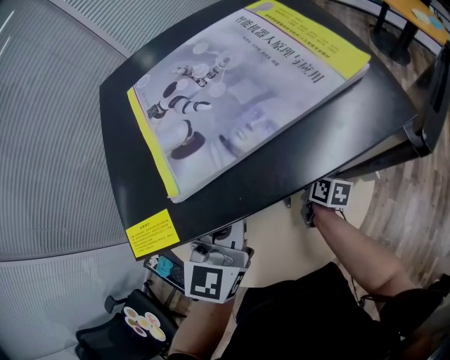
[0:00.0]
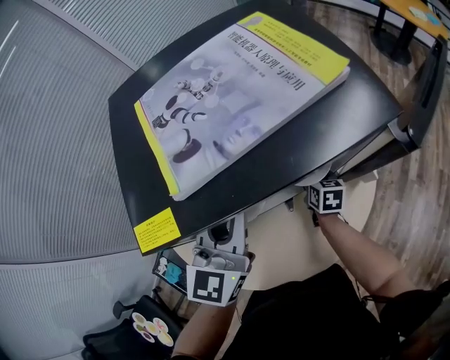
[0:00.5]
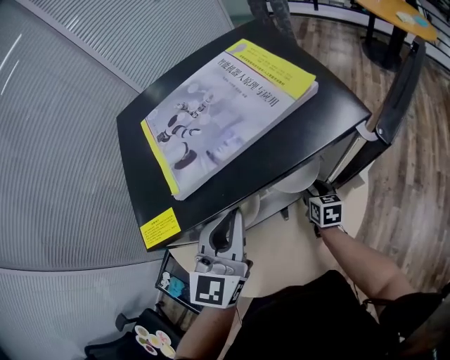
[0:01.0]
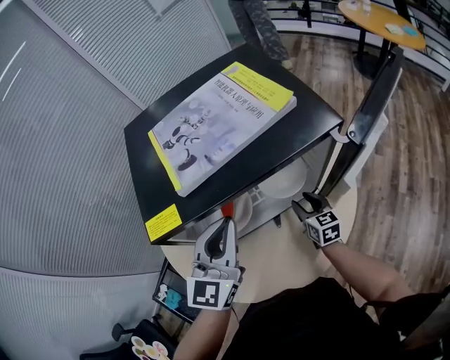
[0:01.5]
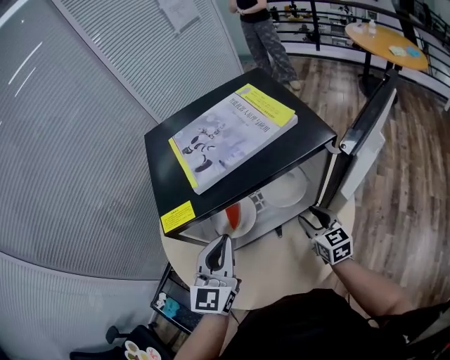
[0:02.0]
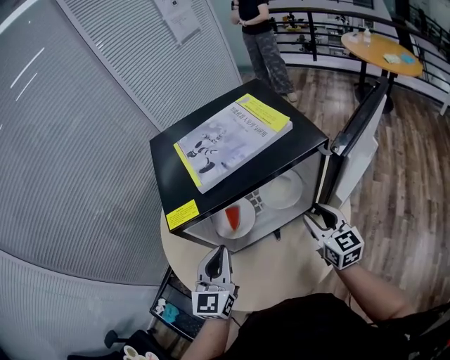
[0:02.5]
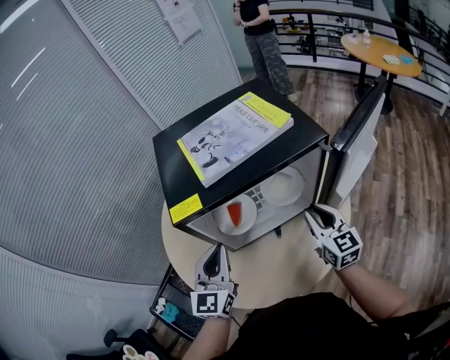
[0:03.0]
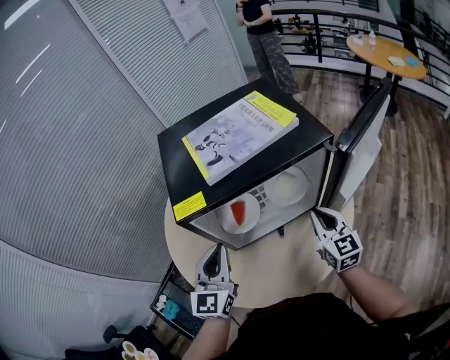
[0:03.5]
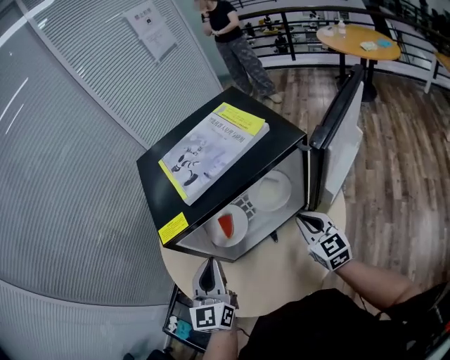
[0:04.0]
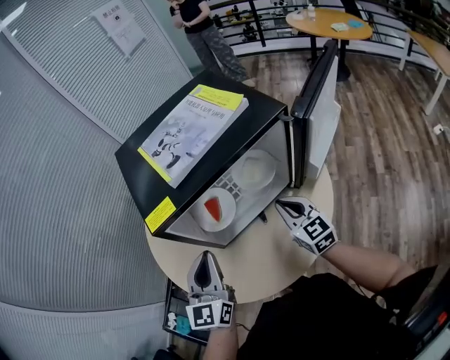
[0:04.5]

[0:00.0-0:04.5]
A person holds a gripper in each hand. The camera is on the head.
0:00.0 to 0:02.0: The right gripper travels upward and backward by approximately 15 cm, rotates around the line of its fingers by approximately 40 degrees, counterclockwise from behind, and opens up; the left gripper is displaced backward by approximately 10 cm.
0:02.0 to 0:04.5: The left gripper is displaced backward by roughly 5 cm, while the right gripper is displaced upward by about 5 cm, and closes its fingers.

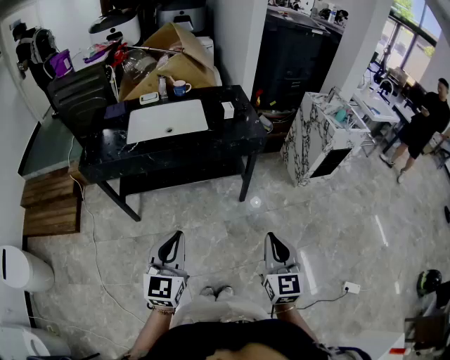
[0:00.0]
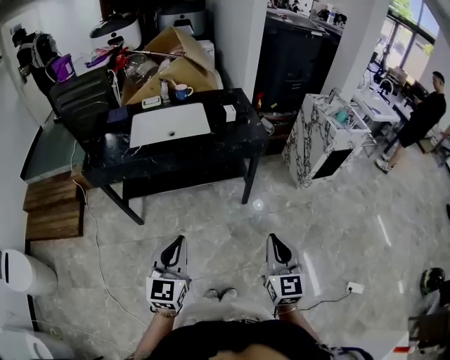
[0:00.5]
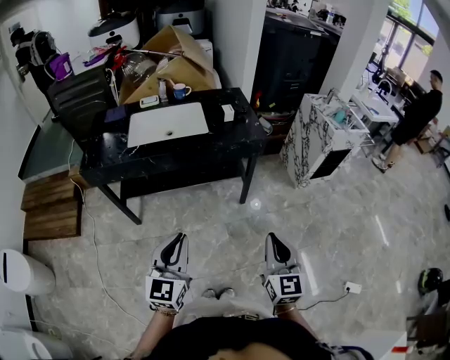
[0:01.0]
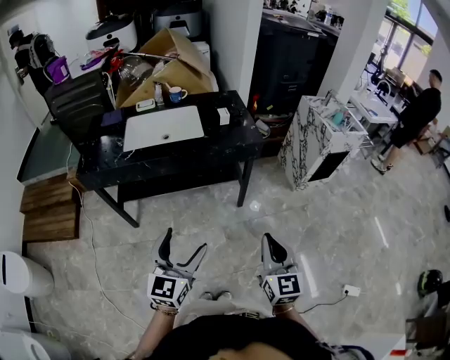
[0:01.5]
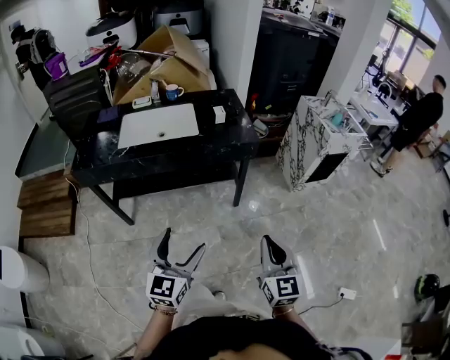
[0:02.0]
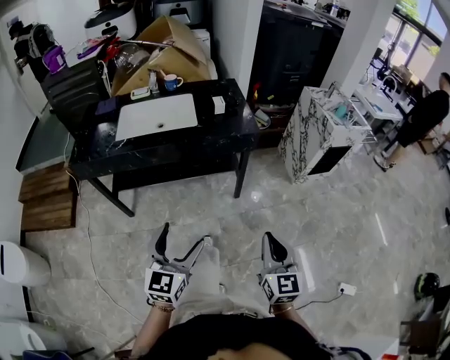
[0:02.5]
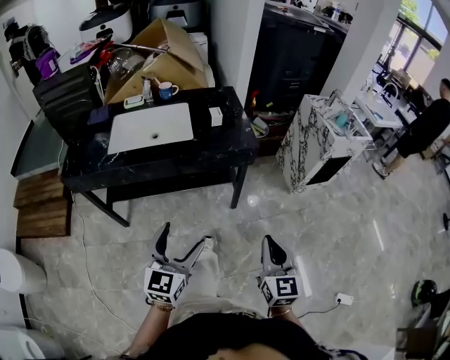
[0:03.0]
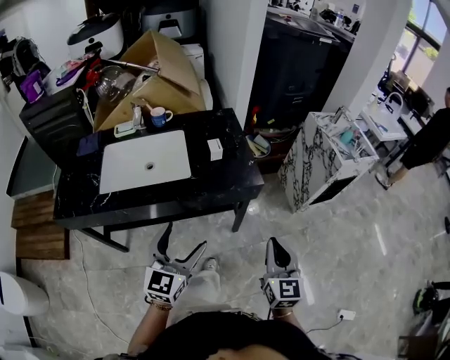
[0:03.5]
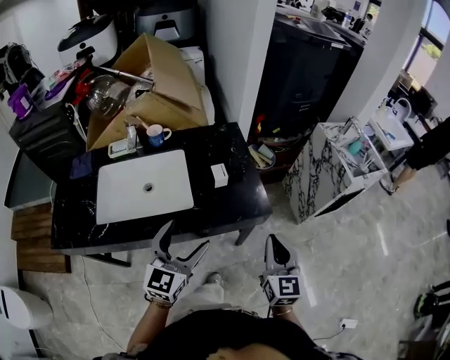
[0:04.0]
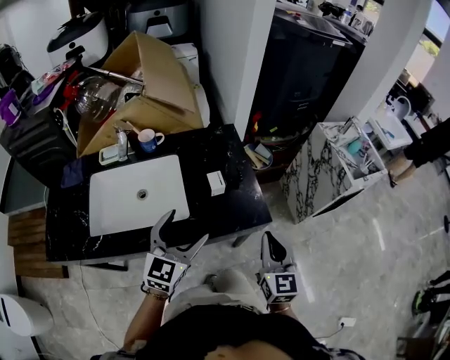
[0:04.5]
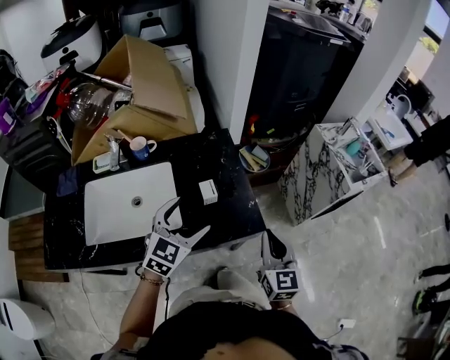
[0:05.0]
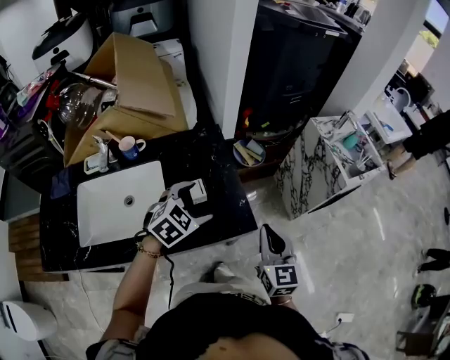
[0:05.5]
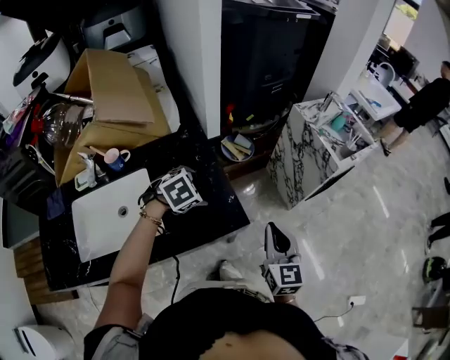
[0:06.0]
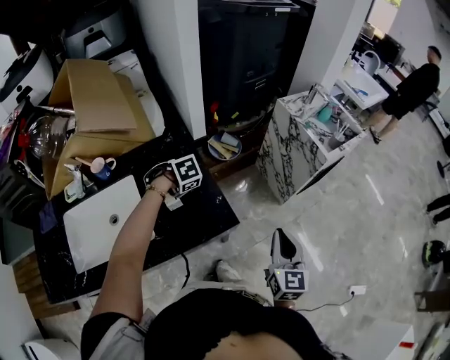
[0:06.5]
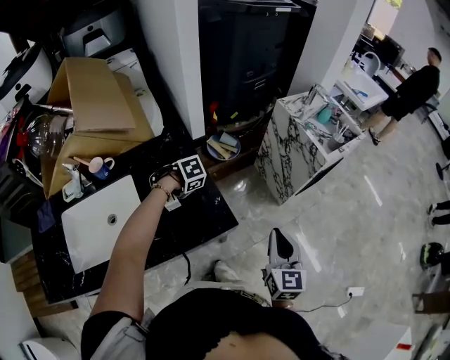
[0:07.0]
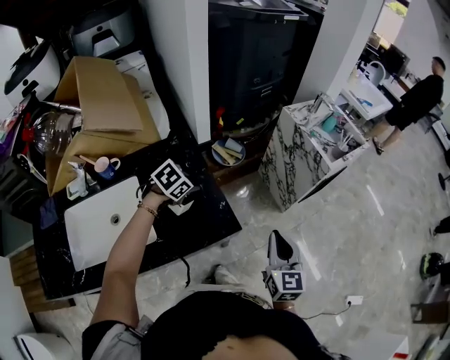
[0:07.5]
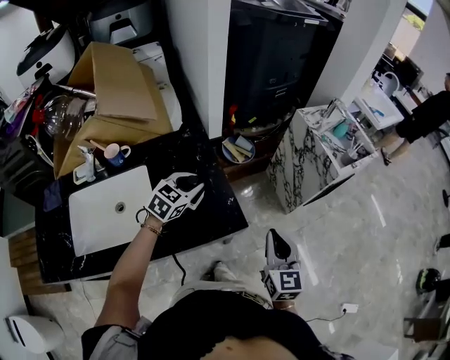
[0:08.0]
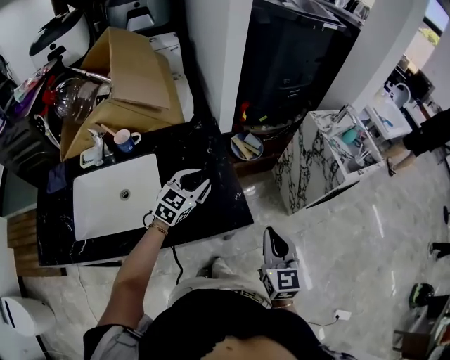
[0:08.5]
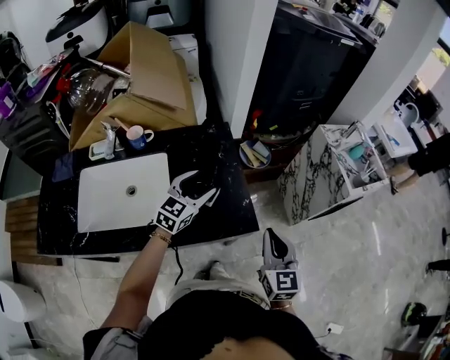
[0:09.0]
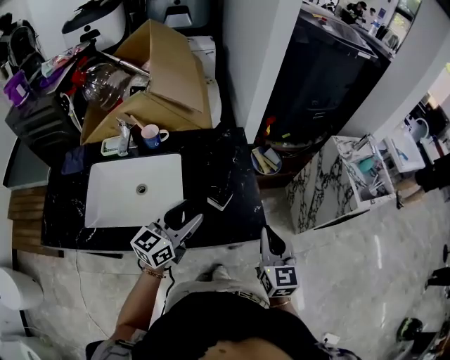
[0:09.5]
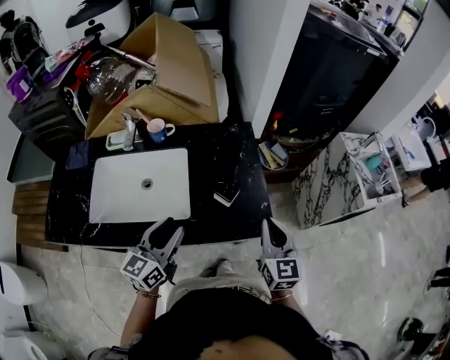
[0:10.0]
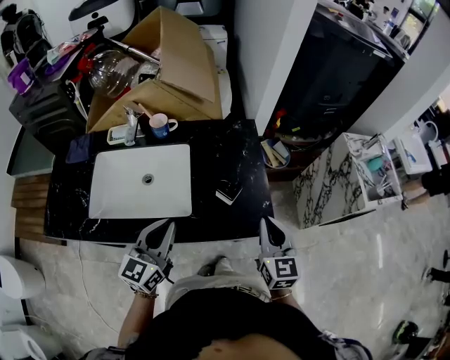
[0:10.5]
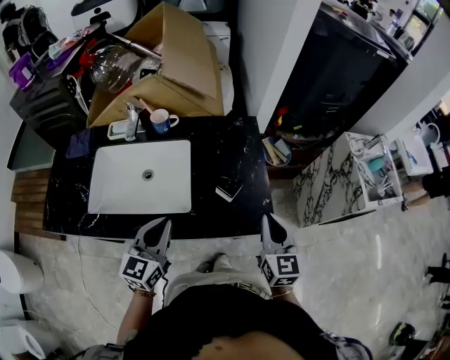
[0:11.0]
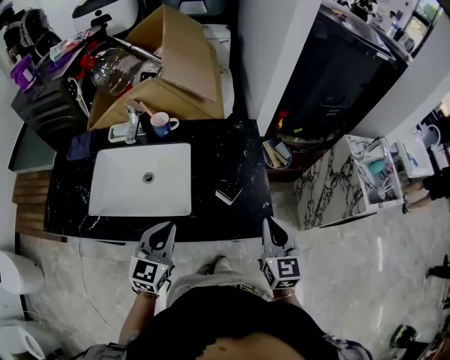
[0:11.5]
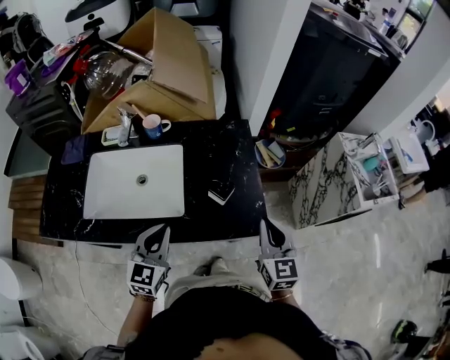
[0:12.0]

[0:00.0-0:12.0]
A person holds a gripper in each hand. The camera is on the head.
0:00.0 to 0:02.0: The left gripper travels to the right by about 5 cm, and opens its fingers.
0:02.0 to 0:04.0: The grippers both shift forward by about 40 cm.
0:04.0 to 0:06.0: The left gripper travels forward by about 25 cm, and points its fingers approximately 60 degrees further downward. Meanwhile the right gripper heads forward and to the right, covering roughly 15 cm.
0:06.0 to 0:08.0: The left gripper travels downward and back again, some 10 cm each way, tips its fingers upward by approximately 30 degrees, and closes.
0:08.0 to 0:10.0: The right gripper shifts approximately 10 cm to the left, while the left gripper goes roughly 25 cm backward and to the left, and swivels approximately 50 degrees.
0:10.0 to 0:12.0: The left gripper changes its angle by some 20 degrees, and closes its fingers.

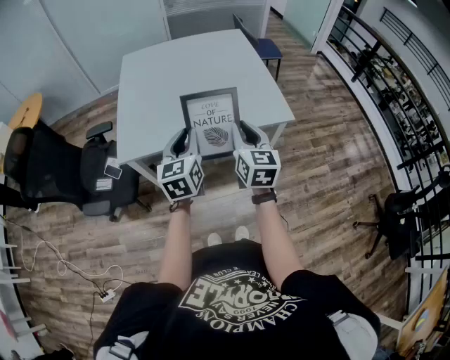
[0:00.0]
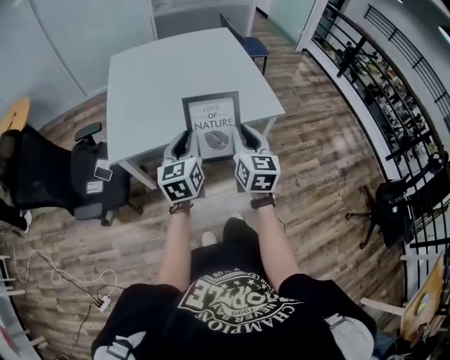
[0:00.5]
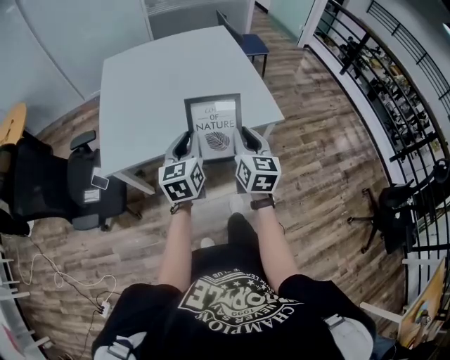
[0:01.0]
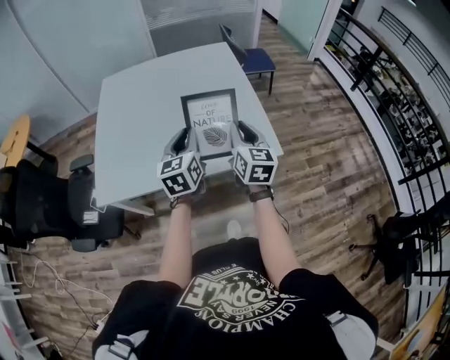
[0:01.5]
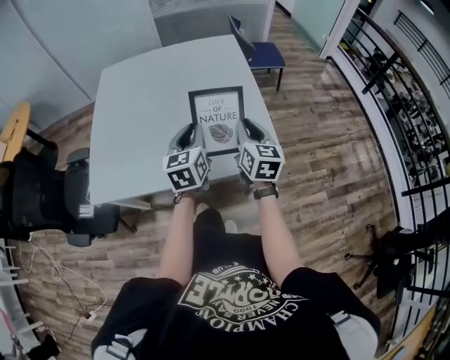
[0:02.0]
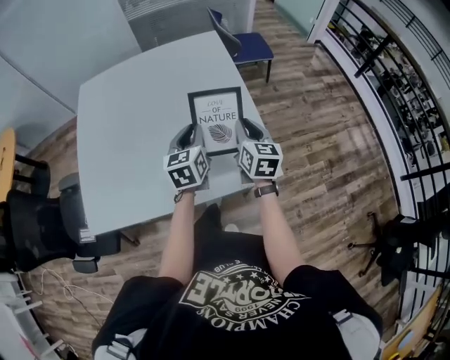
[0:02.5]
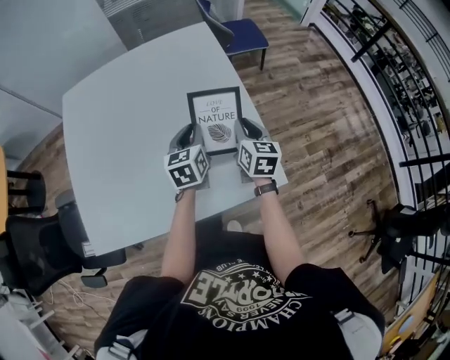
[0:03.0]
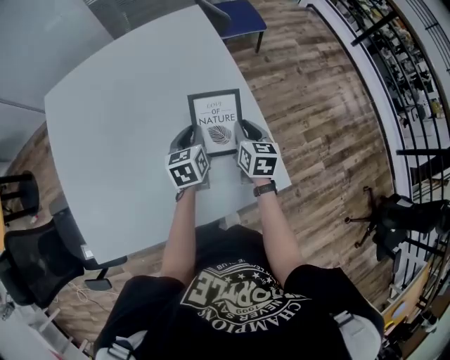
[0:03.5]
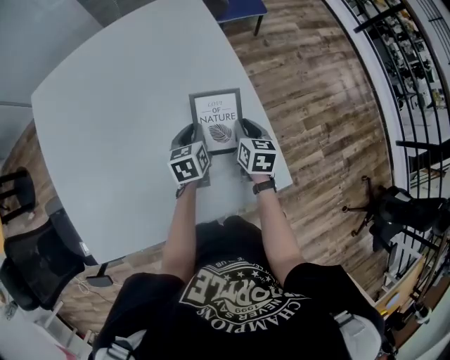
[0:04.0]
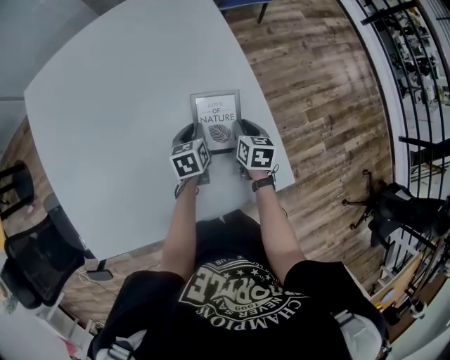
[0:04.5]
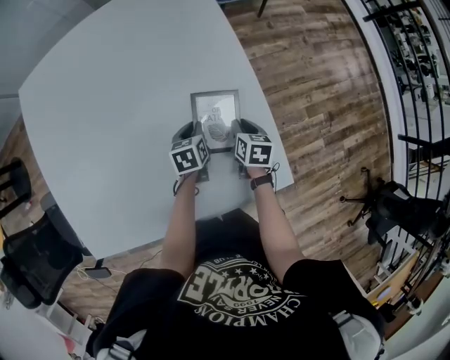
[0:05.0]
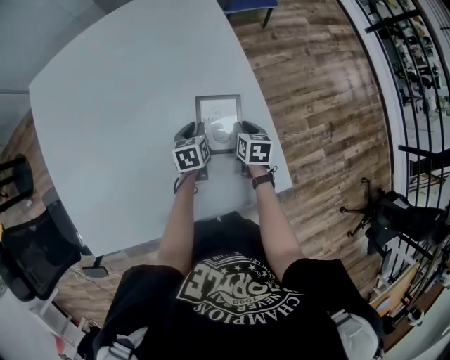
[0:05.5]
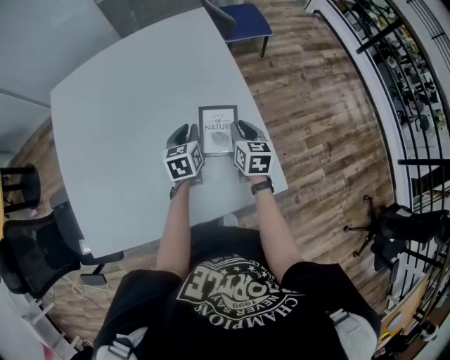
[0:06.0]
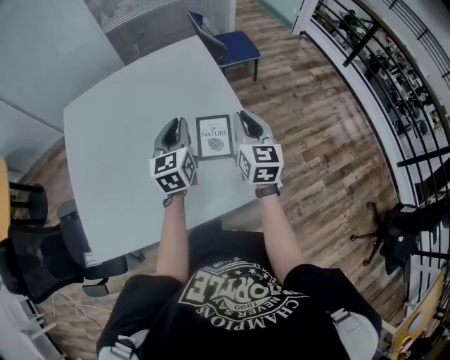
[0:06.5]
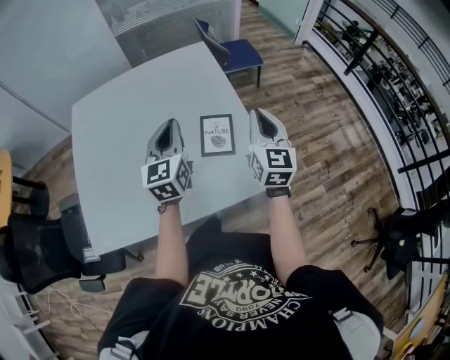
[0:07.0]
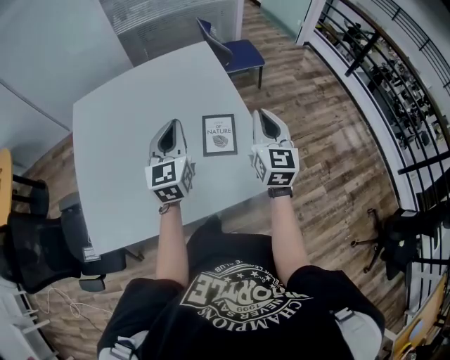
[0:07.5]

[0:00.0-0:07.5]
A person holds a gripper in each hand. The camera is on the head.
0:00.0 to 0:02.0: Both grippers travel together forward and to the right, approximately 30 cm.
0:02.0 to 0:04.0: Both grippers move forward and downward, some 35 cm. The left gripper changes its angle by about 30 degrees, while the right gripper turns by about 30 degrees.
0:04.0 to 0:05.5: The grippers both shift downward by some 10 cm.
0:05.5 to 0:07.5: The grippers both shift upward by about 35 cm. The left gripper tilts its fingers roughly 40 degrees upward. Meanwhile the right gripper points its fingers some 50 degrees further upward.

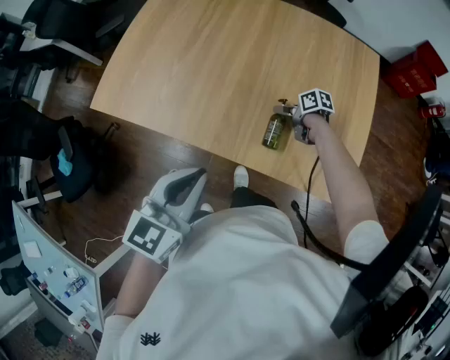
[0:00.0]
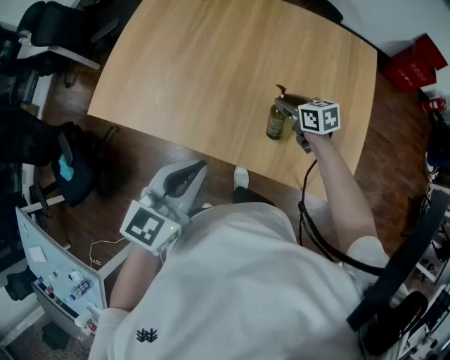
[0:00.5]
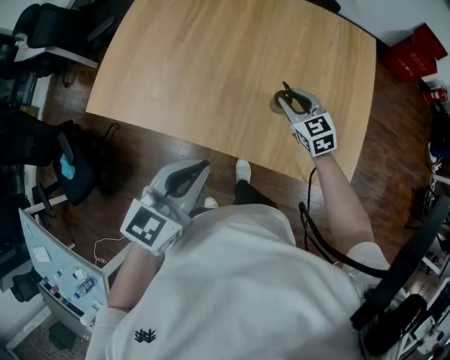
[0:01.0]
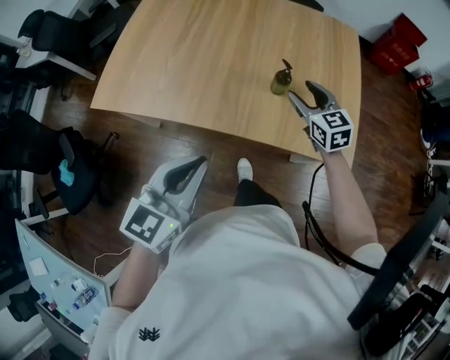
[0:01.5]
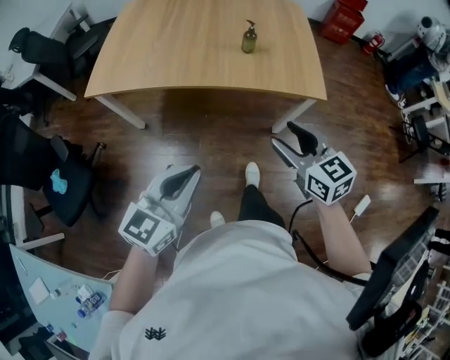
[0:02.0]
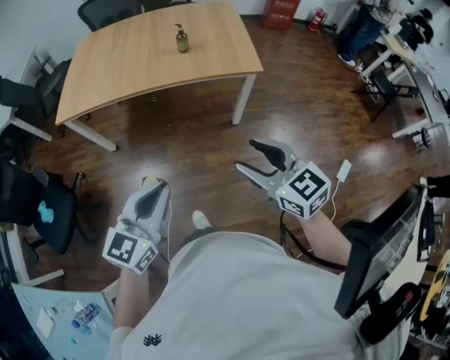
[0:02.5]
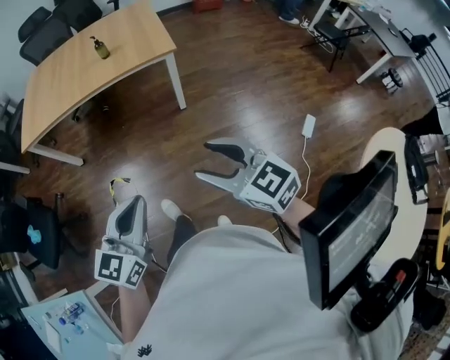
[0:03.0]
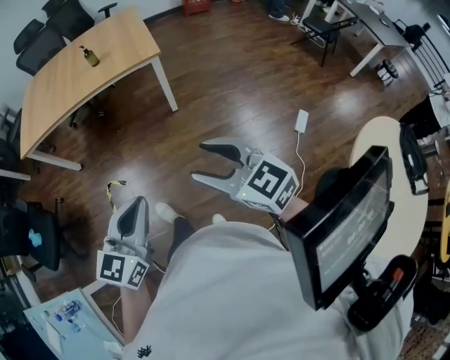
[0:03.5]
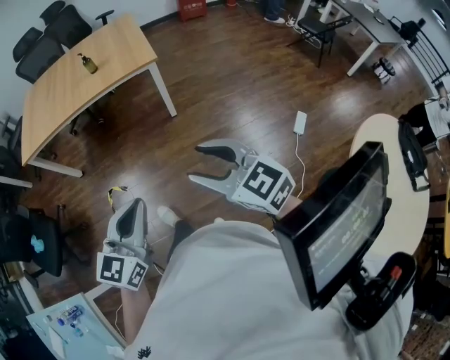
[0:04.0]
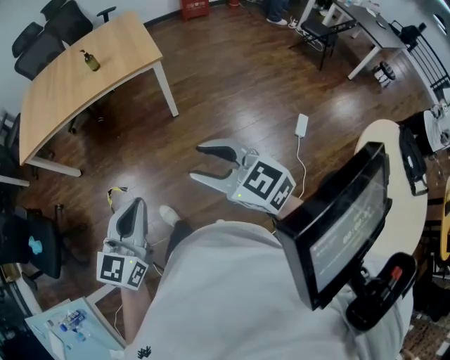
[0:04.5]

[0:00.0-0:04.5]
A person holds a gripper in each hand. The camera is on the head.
0:00.0 to 0:02.0: The left gripper ends up approximately 25 cm from where it was, and turns by about 20 degrees, while the right gripper ends up about 50 cm from where it was, changes its angle by approximately 60 degrees, and closes, then opens again.
0:02.0 to 0:04.5: The grippers both shift backward and to the right by approximately 35 cm.
